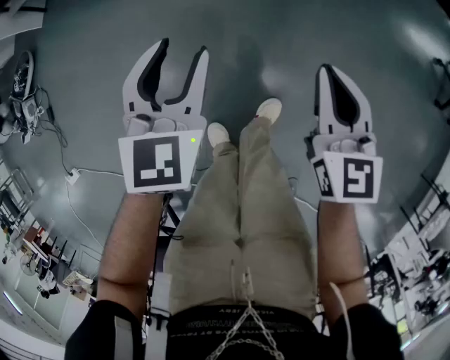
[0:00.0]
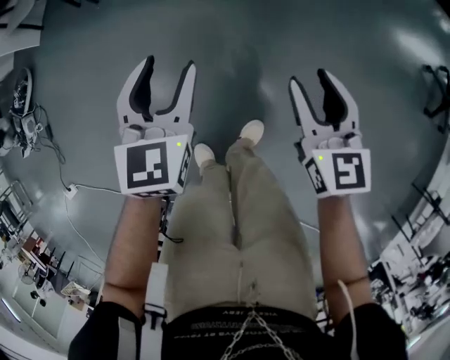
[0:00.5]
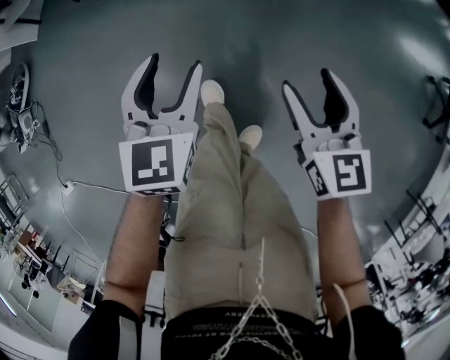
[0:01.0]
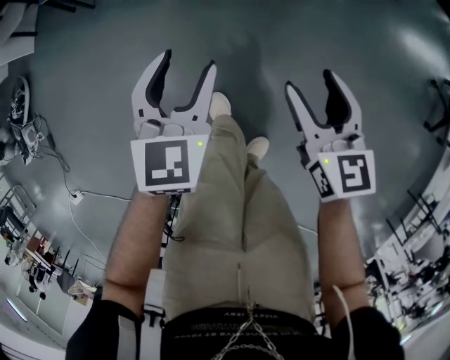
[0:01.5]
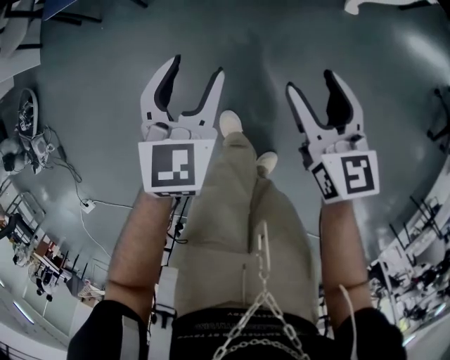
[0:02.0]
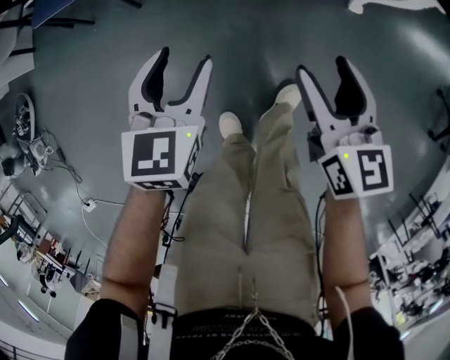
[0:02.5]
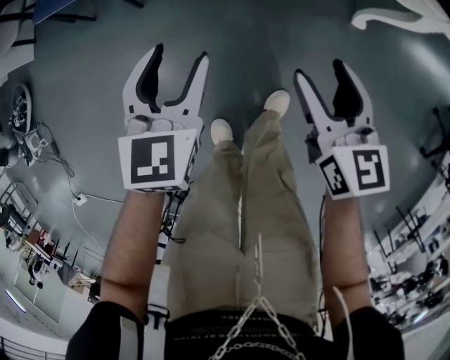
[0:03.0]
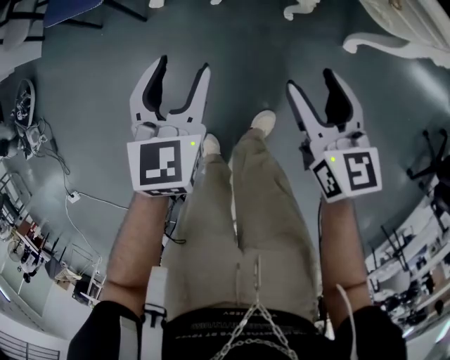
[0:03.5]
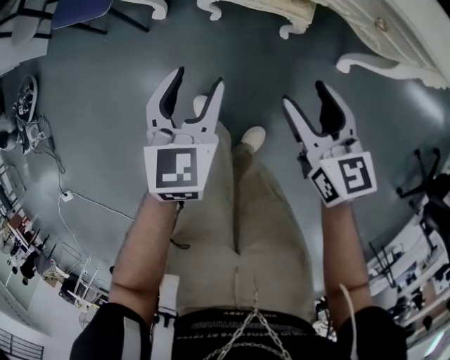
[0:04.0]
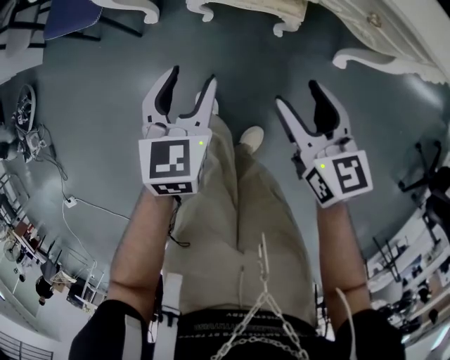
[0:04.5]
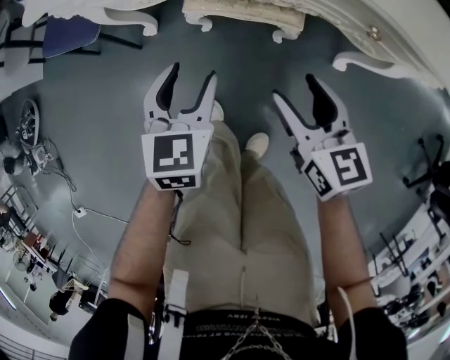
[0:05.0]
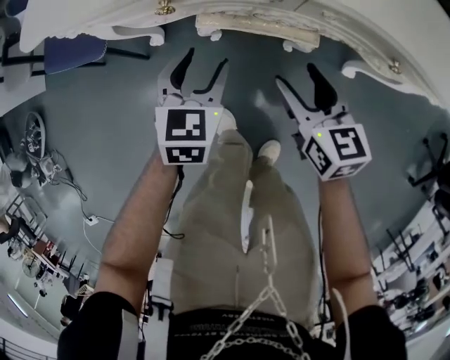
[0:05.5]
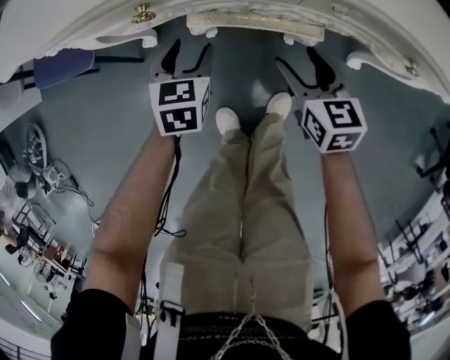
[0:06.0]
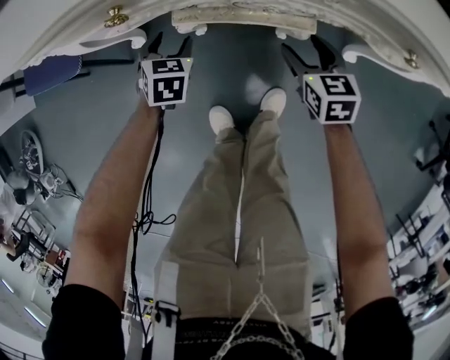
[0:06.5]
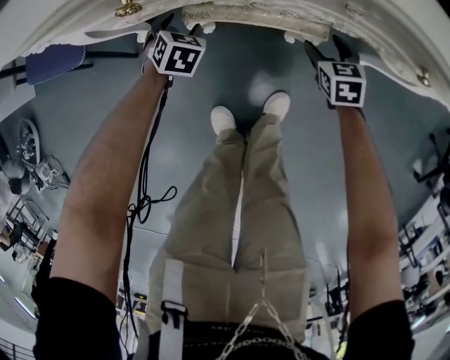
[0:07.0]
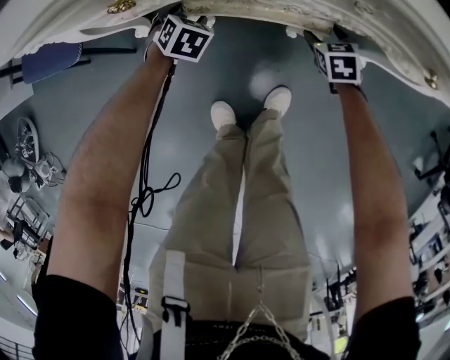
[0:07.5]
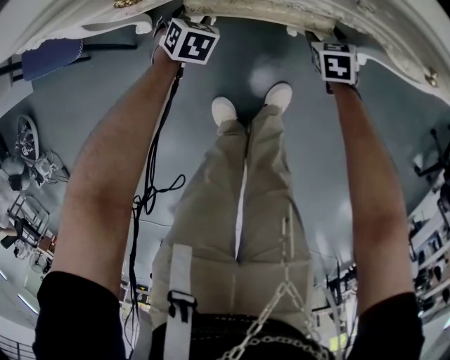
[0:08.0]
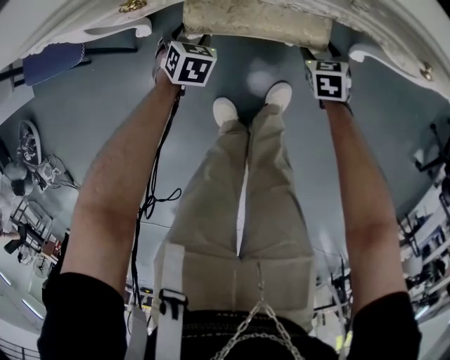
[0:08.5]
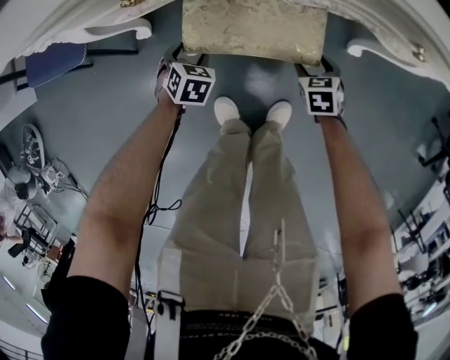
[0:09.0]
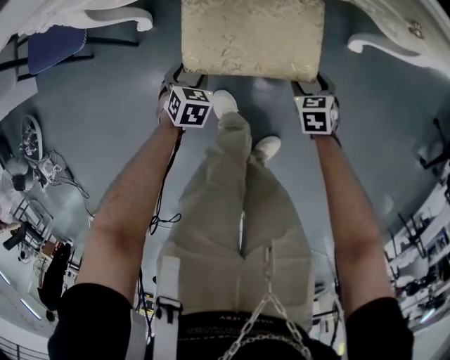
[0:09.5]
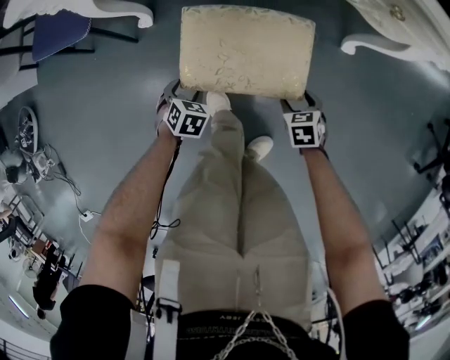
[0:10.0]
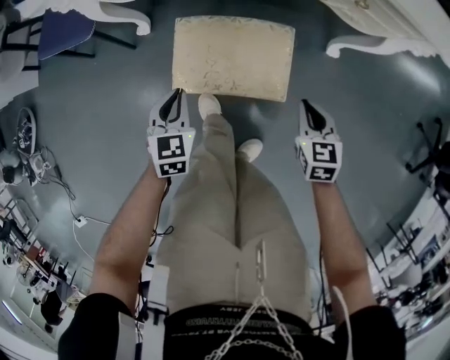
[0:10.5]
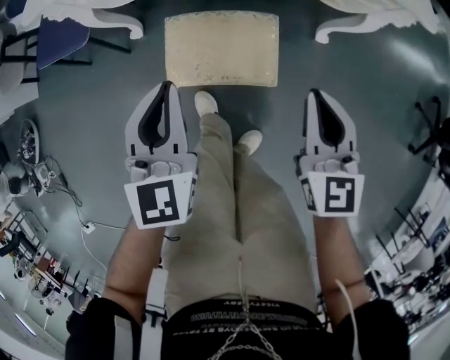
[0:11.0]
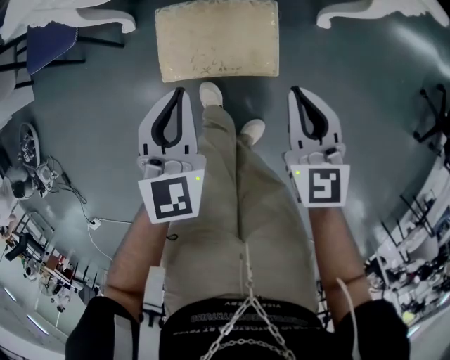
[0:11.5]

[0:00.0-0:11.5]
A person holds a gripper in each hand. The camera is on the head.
0:00.0 to 0:02.0: The grippers both shift forward by about 30 cm. The right gripper opens up.
0:02.0 to 0:04.0: The two grippers go roughly 20 cm forward and to the right.
0:04.0 to 0:06.0: The grippers both shift forward and downward by about 25 cm.
0:06.0 to 0:07.5: The left gripper heads downward and forward, covering some 15 cm, and turns by roughly 30 degrees, while the right gripper goes roughly 20 cm downward, to the right and forward, and rotates approximately 30 degrees.
0:07.5 to 0:09.5: The grippers both shift backward by some 25 cm.
0:09.5 to 0:11.5: Both grippers move upward, approximately 35 cm. The left gripper points its fingers some 40 degrees further upward, and closes its fingers; the right gripper tilts its fingers some 40 degrees upward, and closes its fingers.

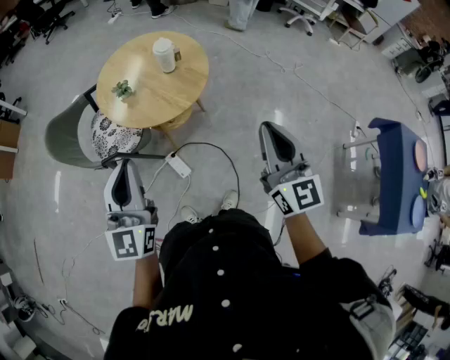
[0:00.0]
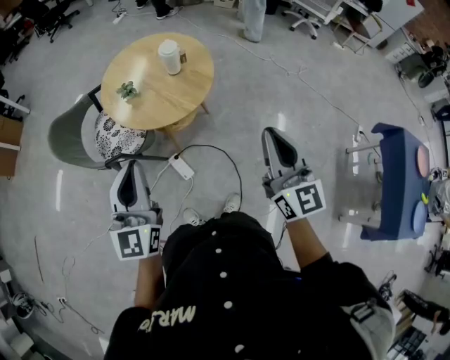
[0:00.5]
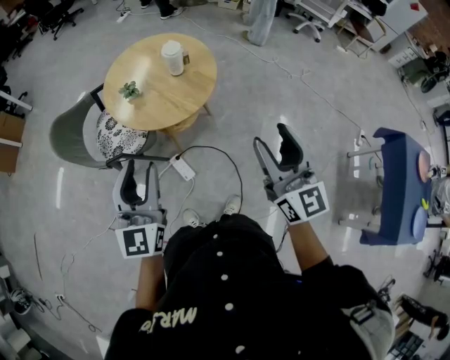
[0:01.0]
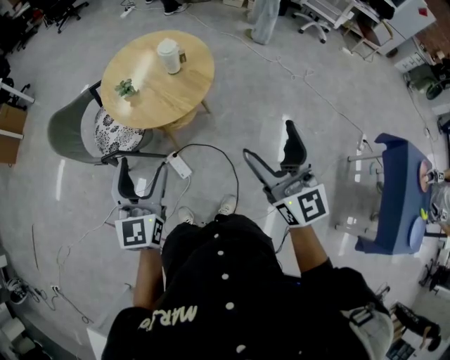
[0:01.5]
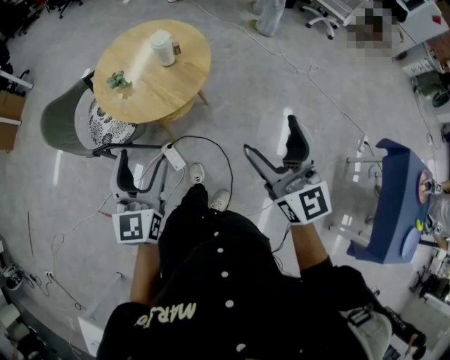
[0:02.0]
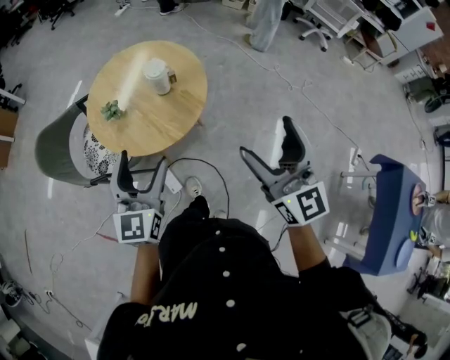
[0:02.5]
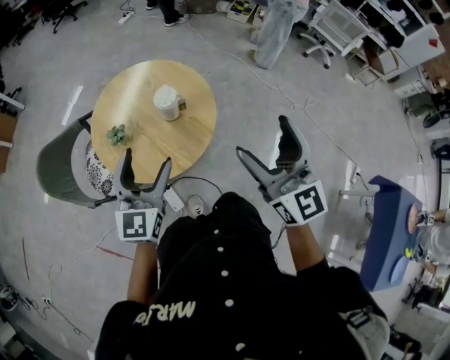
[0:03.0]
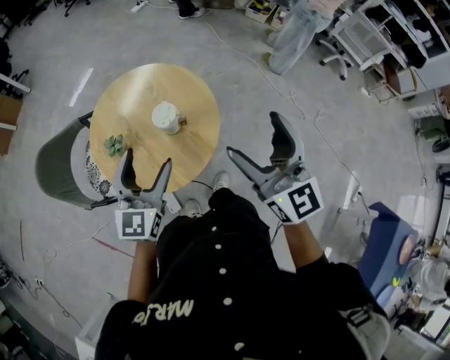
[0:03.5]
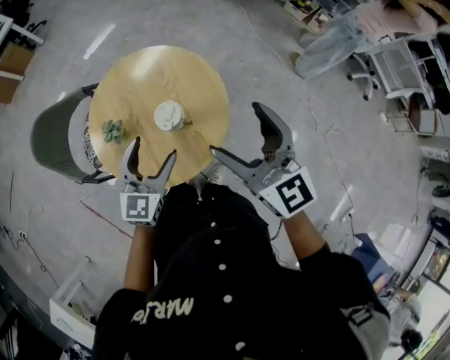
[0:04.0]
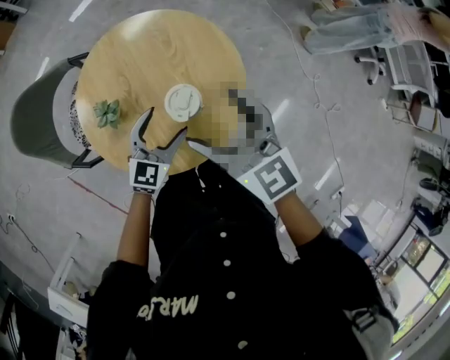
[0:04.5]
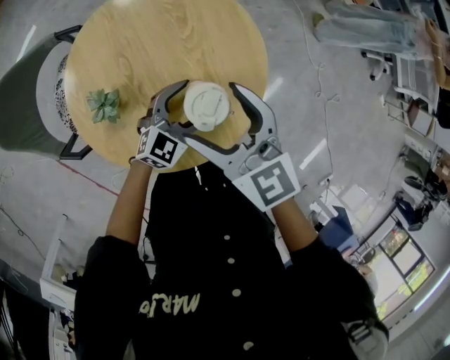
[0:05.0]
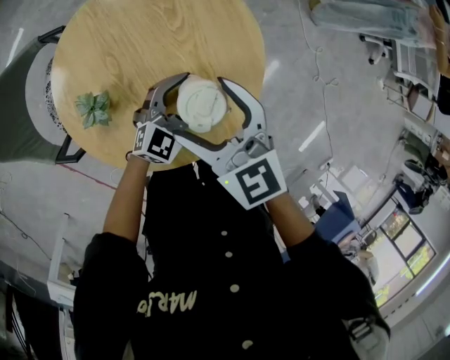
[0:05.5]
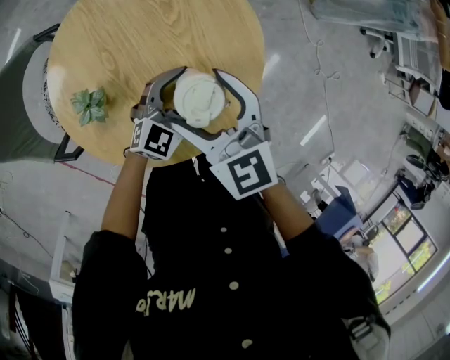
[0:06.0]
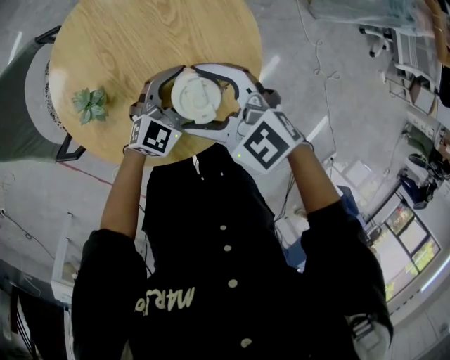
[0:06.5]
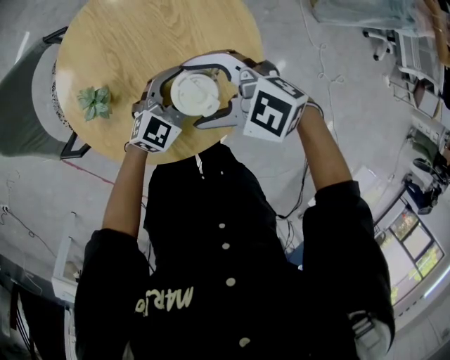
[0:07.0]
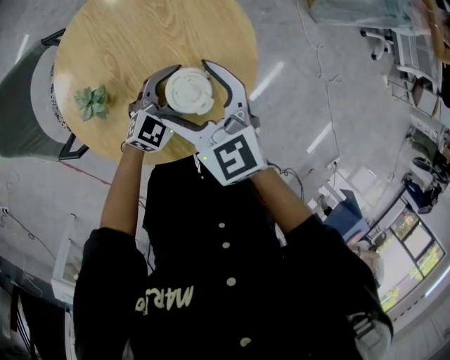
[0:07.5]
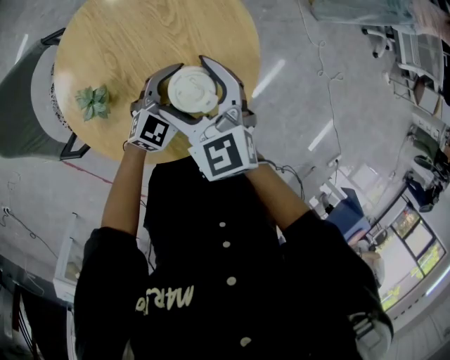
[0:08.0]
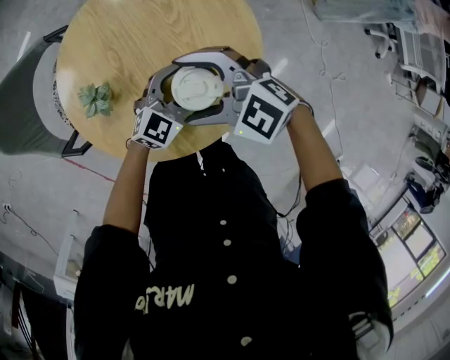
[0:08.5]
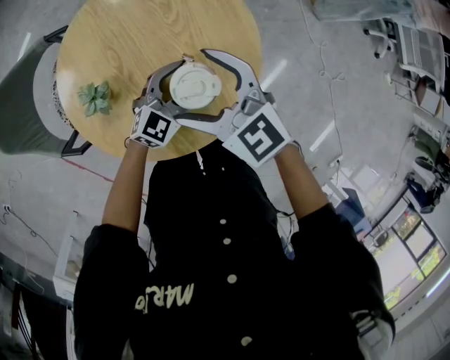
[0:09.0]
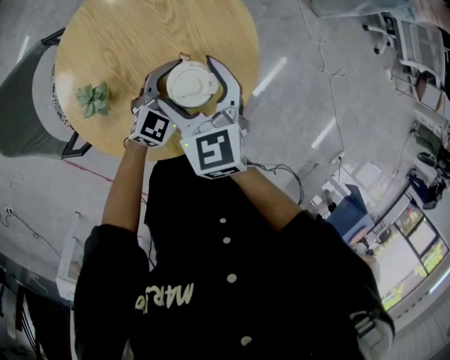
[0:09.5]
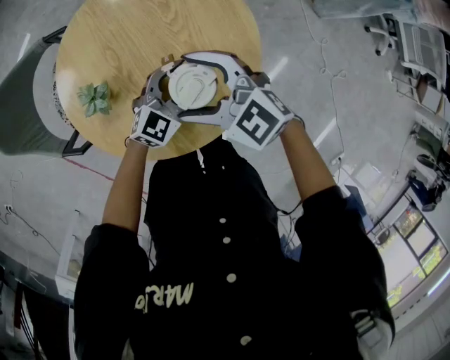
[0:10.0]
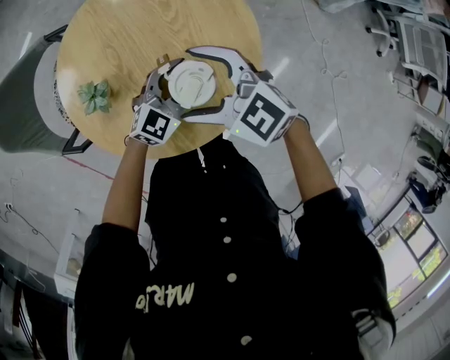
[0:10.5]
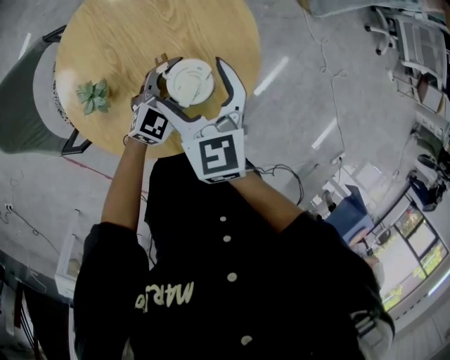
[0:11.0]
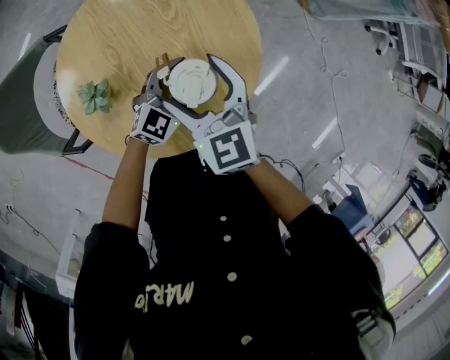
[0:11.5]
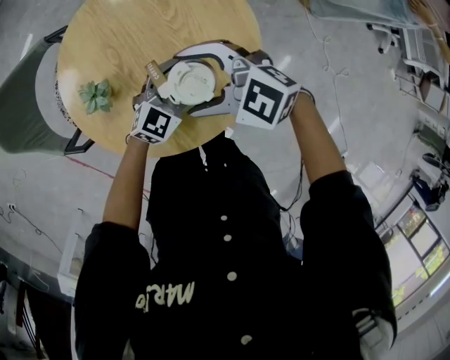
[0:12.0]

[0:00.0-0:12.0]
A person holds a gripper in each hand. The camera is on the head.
0:00.0 to 0:02.0: The right gripper travels to the right and forward by approximately 10 cm, and opens; the left gripper is displaced to the right and downward by roughly 10 cm, and opens.
0:02.0 to 0:04.0: The two grippers go approximately 40 cm forward. The right gripper rotates about 30 degrees.
0:04.0 to 0:06.0: The left gripper shifts about 25 cm downward, and rotates about 30 degrees, while the right gripper travels downward and to the left by some 30 cm, and changes its angle by some 20 degrees.
0:08.0 to 0:10.0: The right gripper turns by some 40 degrees.

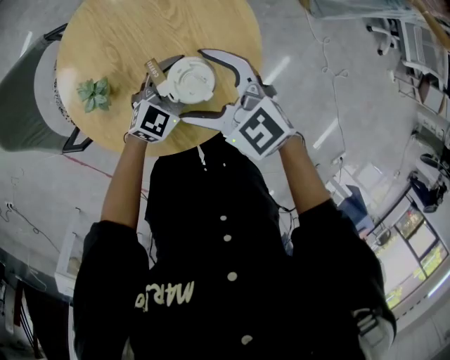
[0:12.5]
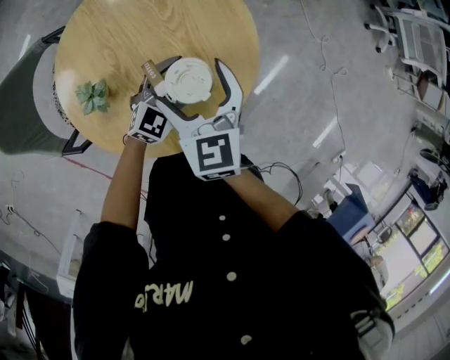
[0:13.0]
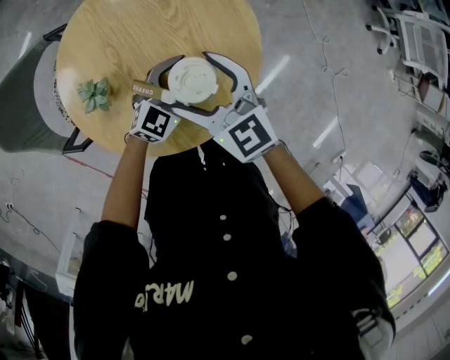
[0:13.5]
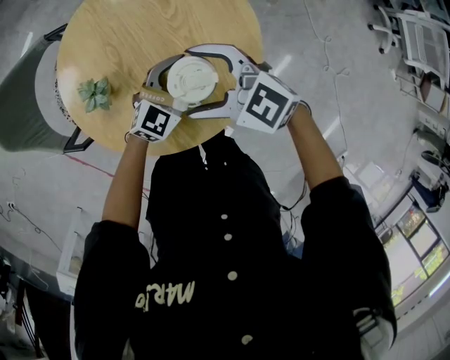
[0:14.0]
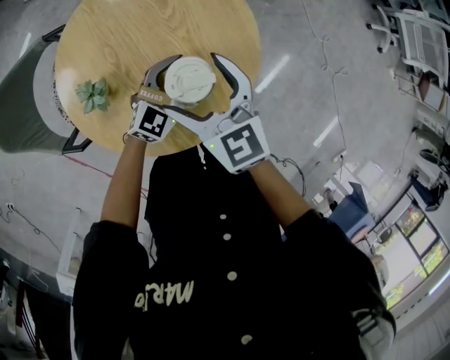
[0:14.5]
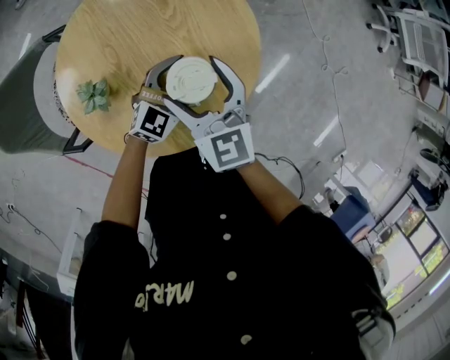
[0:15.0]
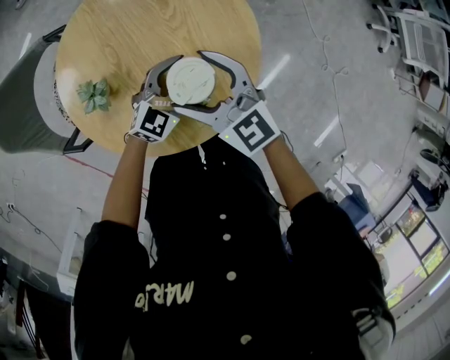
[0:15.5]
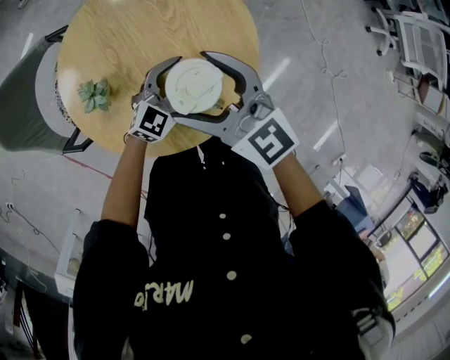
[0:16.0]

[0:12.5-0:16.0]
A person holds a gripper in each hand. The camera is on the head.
0:12.5 to 0:14.5: The right gripper changes its angle by approximately 30 degrees.
0:14.5 to 0:16.0: The right gripper moves upward, some 5 cm, and turns by roughly 20 degrees.
